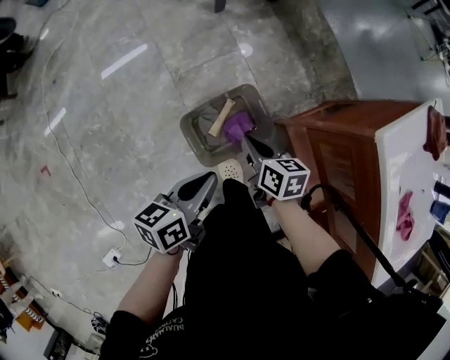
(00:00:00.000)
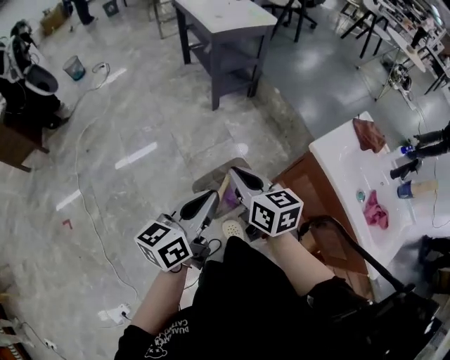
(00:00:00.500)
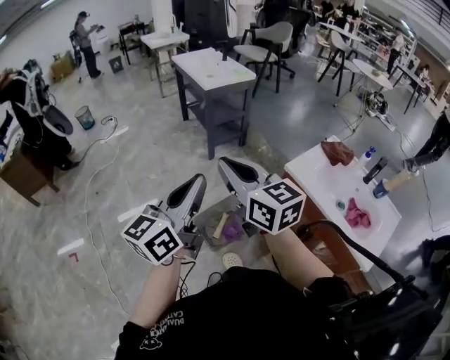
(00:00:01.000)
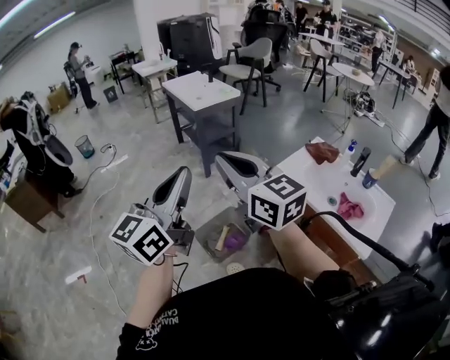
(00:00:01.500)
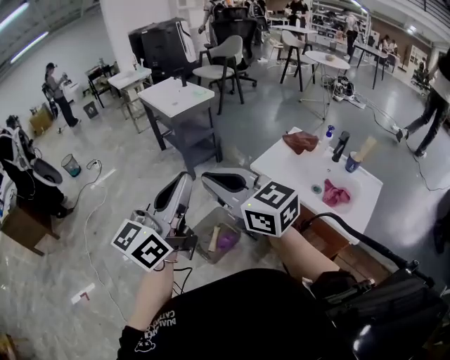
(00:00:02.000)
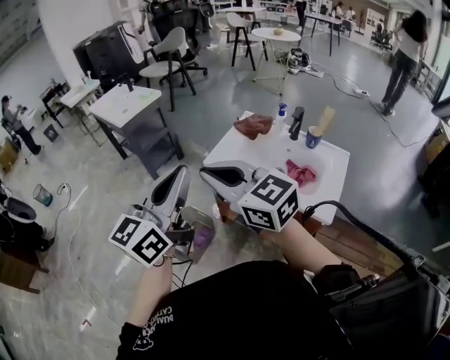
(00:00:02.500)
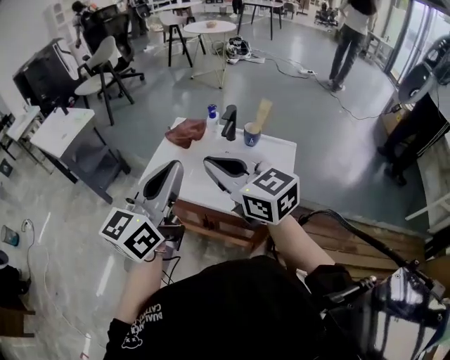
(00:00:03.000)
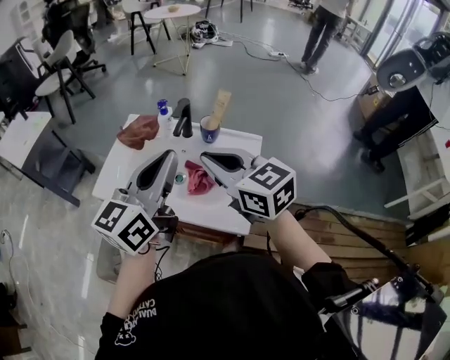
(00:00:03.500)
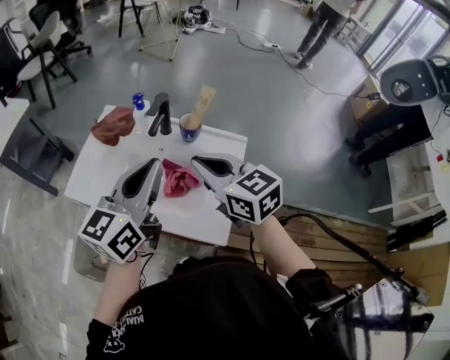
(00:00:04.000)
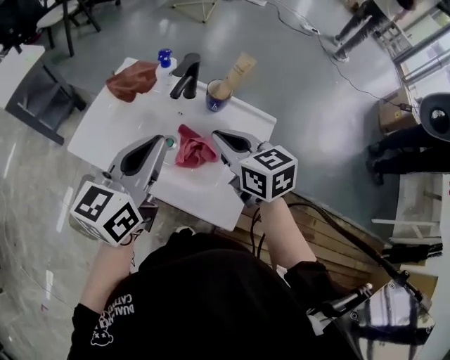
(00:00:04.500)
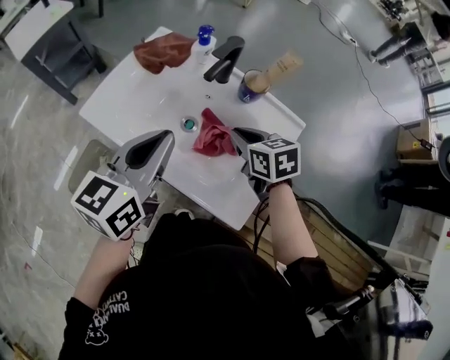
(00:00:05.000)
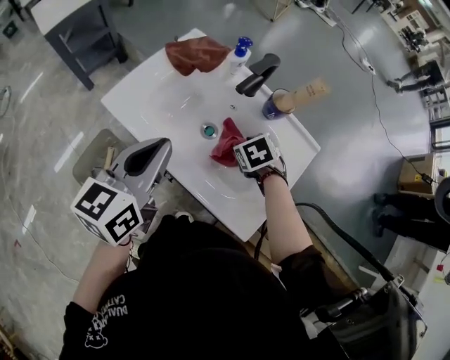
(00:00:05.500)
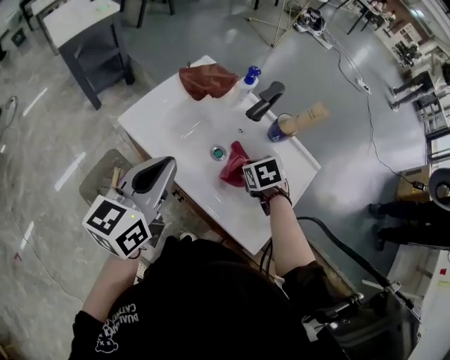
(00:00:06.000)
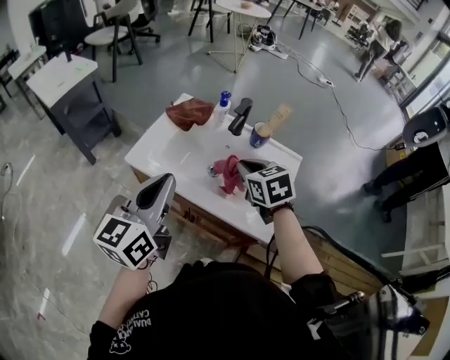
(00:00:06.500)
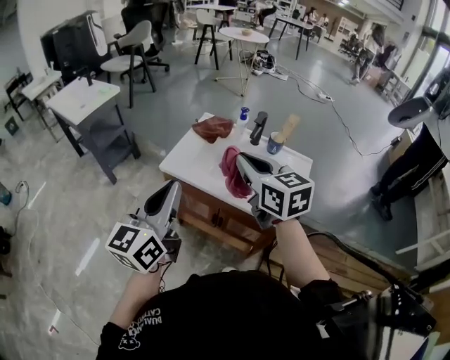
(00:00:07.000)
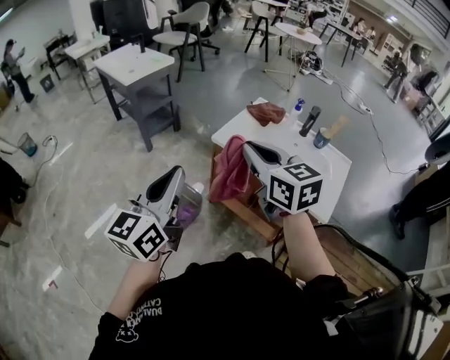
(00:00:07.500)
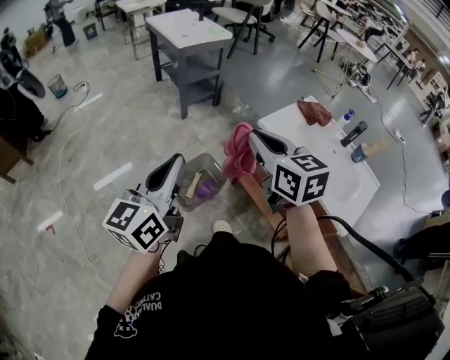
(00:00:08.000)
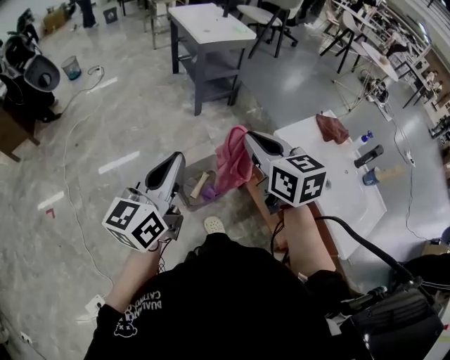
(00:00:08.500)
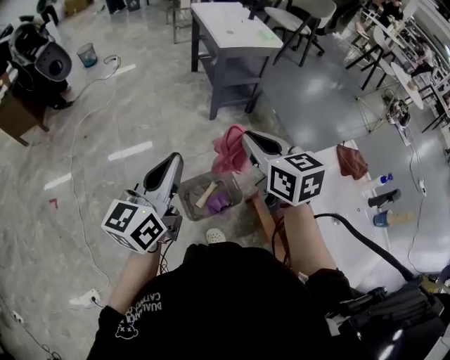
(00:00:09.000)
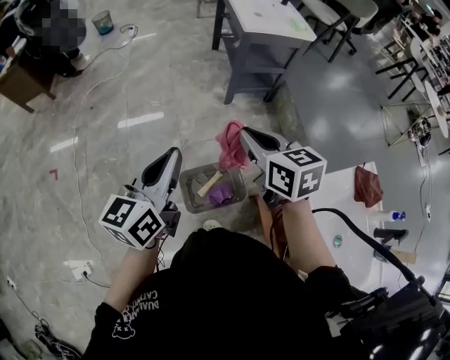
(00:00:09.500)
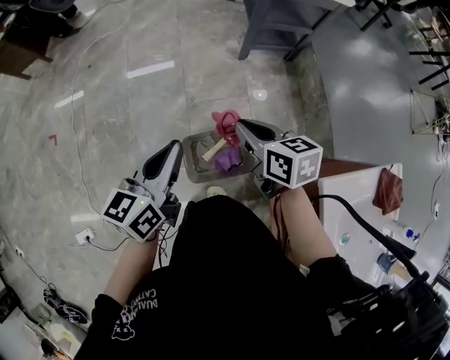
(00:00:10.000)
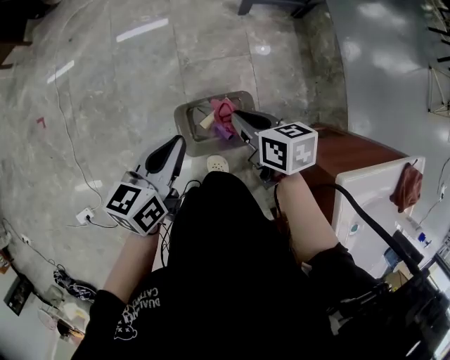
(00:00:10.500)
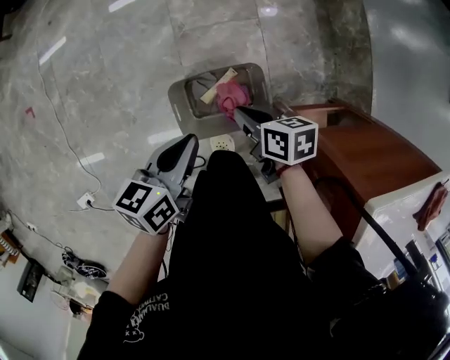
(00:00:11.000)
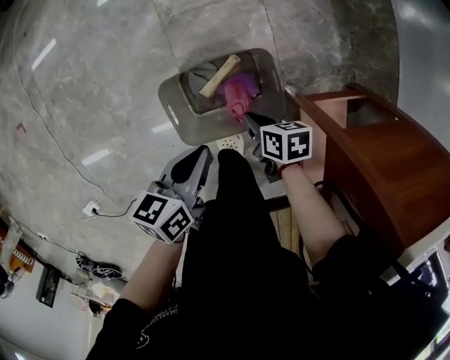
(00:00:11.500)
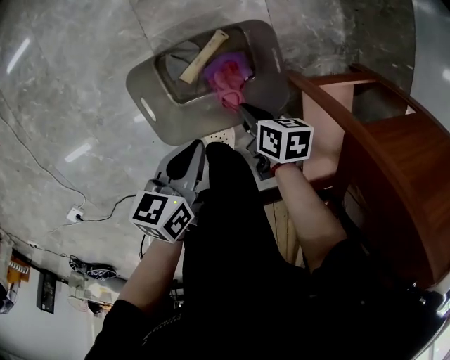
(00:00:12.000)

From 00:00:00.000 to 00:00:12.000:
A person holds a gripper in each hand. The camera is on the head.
From 00:00:00.000 to 00:00:02.000: The left gripper travels upward by some 60 cm, and angles its fingers upward, by about 40 degrees. Meanwhile the right gripper goes roughly 70 cm upward and backward, and tips its fingers upward by about 40 degrees.
From 00:00:02.000 to 00:00:04.000: Both grippers are carried approximately 60 cm. The left gripper swivels approximately 30 degrees. Meanwhile the right gripper swivels about 40 degrees.
From 00:00:04.000 to 00:00:06.000: The right gripper heads downward, covering approximately 25 cm, tilts its fingers about 50 degrees downward, and opens, then closes again. The left gripper moves to the left and downward, approximately 20 cm, and turns by some 20 degrees.
From 00:00:06.000 to 00:00:08.000: Both grippers are carried approximately 50 cm. The left gripper turns by about 20 degrees. The right gripper tilts its fingers about 50 degrees upward.
From 00:00:08.000 to 00:00:10.000: The right gripper moves some 40 cm, and turns by about 40 degrees. Meanwhile the left gripper moves roughly 35 cm, and changes its angle by approximately 30 degrees.
From 00:00:10.000 to 00:00:12.000: The two grippers go some 60 cm downward. The right gripper turns by roughly 40 degrees. The left gripper changes its angle by some 40 degrees.

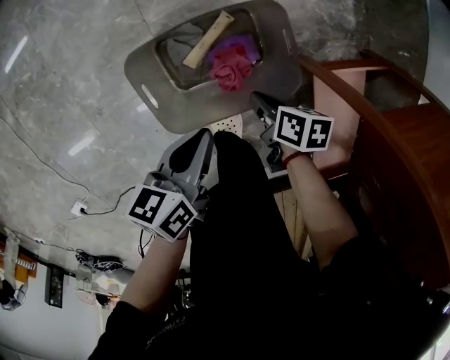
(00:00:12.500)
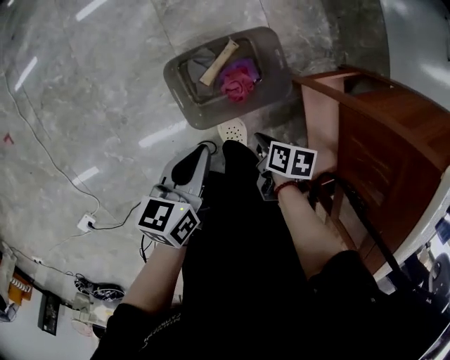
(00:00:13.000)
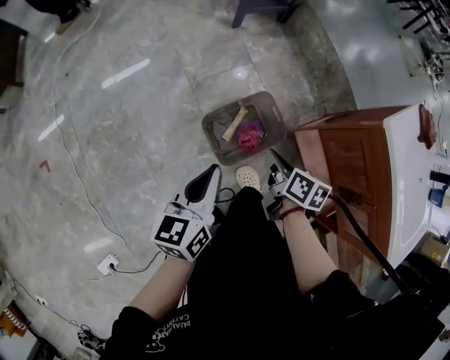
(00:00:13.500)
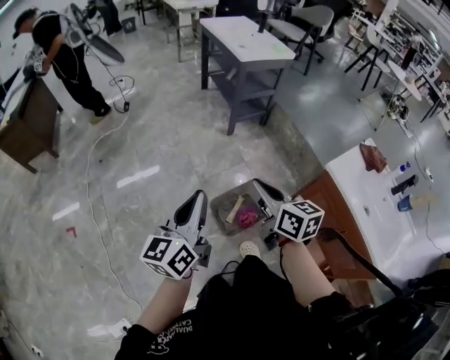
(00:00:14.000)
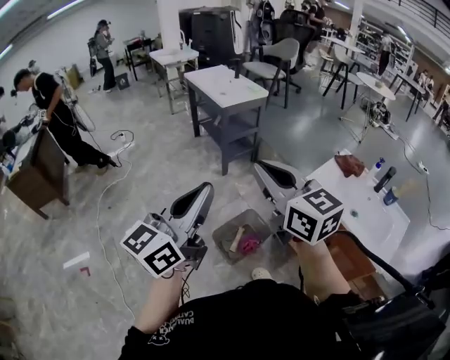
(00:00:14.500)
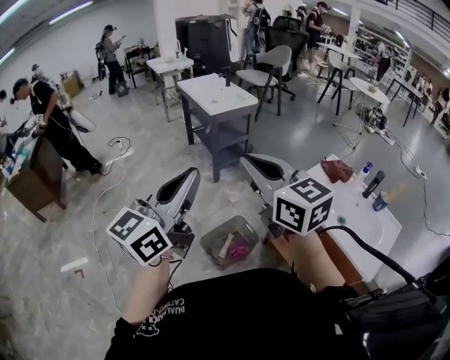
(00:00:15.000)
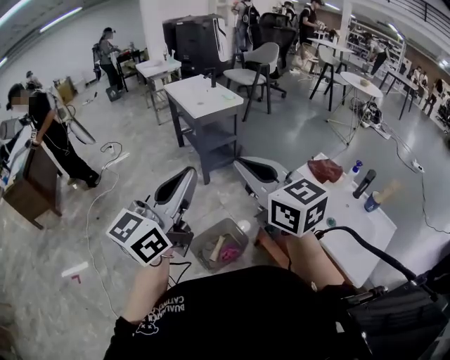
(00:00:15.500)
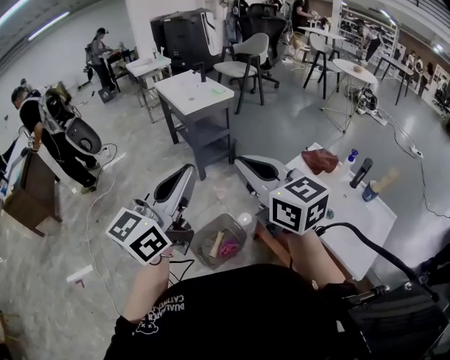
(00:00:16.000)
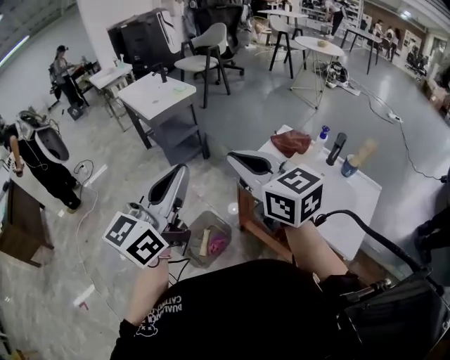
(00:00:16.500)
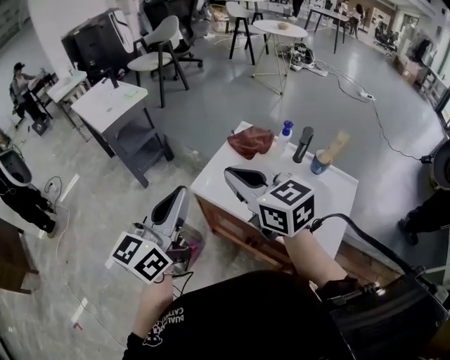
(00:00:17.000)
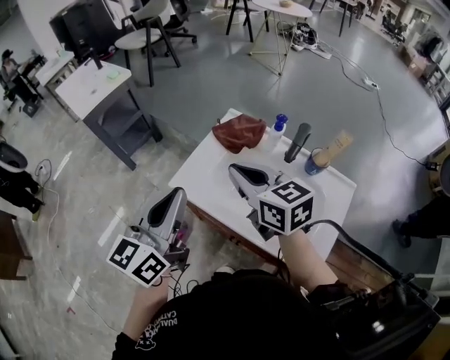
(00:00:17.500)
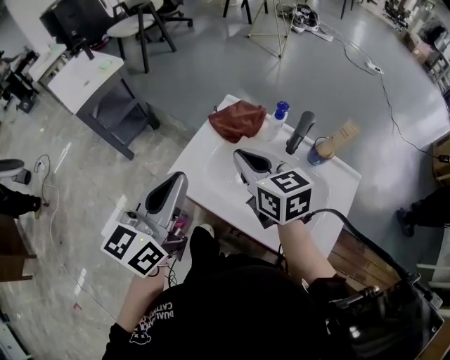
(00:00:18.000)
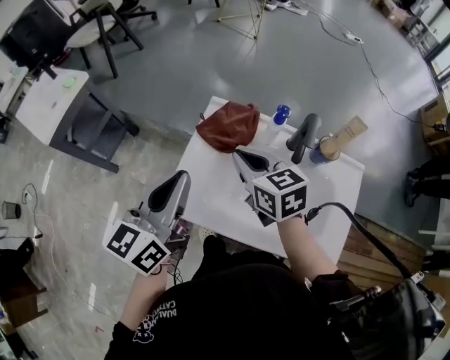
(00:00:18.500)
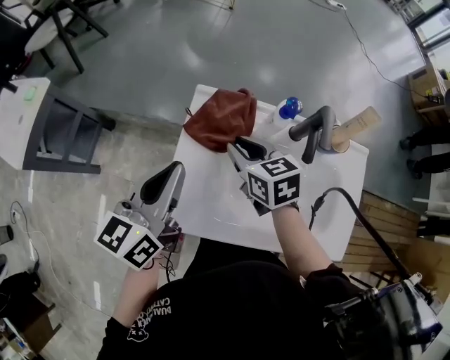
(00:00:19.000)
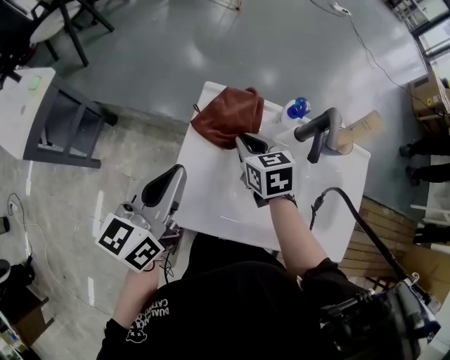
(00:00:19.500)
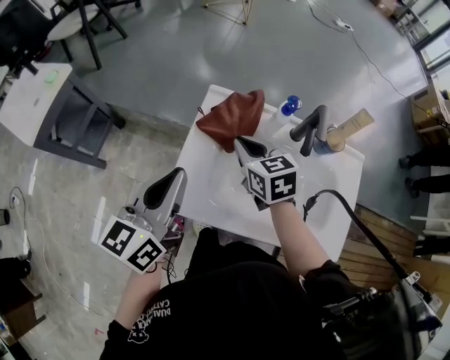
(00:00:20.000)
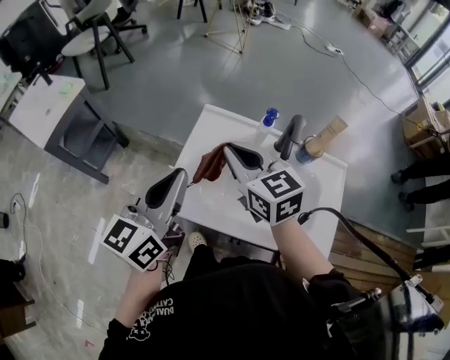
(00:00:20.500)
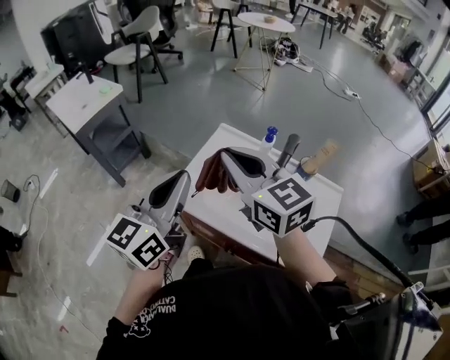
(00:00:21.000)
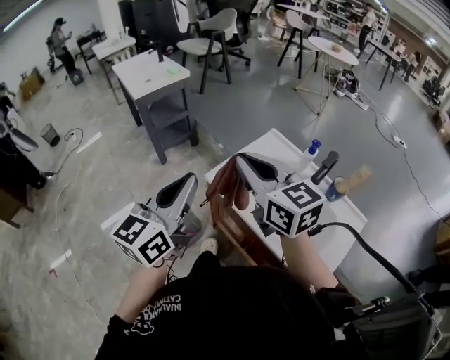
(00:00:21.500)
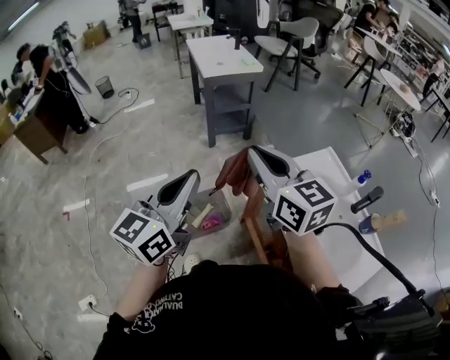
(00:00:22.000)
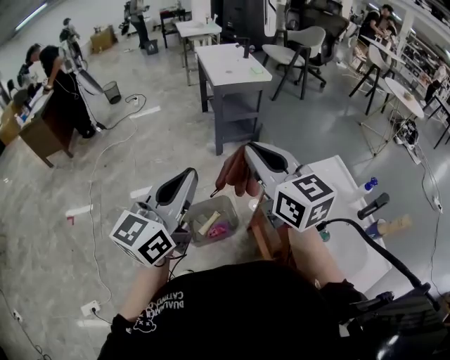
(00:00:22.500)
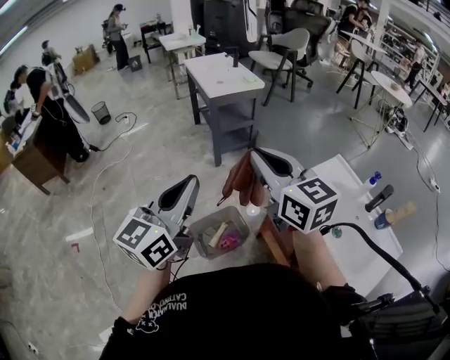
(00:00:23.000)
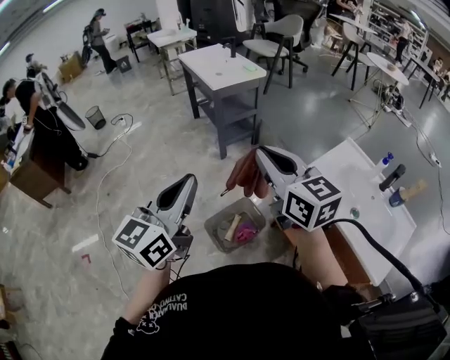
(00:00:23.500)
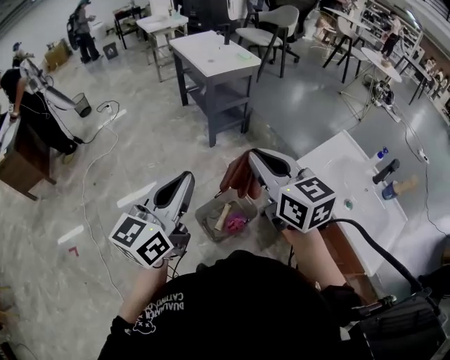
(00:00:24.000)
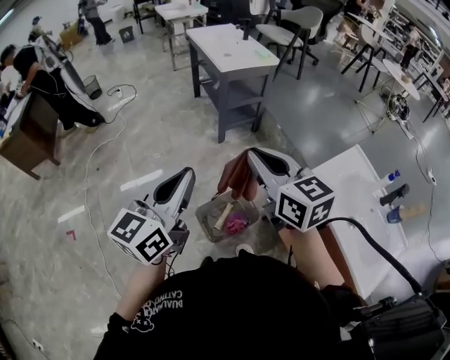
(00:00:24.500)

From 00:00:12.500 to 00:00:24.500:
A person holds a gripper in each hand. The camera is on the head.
From 00:00:12.500 to 00:00:14.500: The grippers both shift upward by roughly 90 cm. The right gripper angles its fingers upward, by about 60 degrees. The left gripper tilts its fingers approximately 50 degrees upward.
From 00:00:14.500 to 00:00:16.500: Both grippers move to the right, approximately 25 cm.
From 00:00:16.500 to 00:00:18.500: The grippers both shift forward, to the right and downward by about 50 cm. The left gripper rotates about 30 degrees. Meanwhile the right gripper turns by some 40 degrees.
From 00:00:18.500 to 00:00:20.500: The right gripper is displaced upward by approximately 10 cm, while the left gripper reaches approximately 10 cm forward, then returns.
From 00:00:20.500 to 00:00:22.500: The right gripper moves about 40 cm, and changes its angle by about 50 degrees. Meanwhile the left gripper ends up approximately 40 cm from where it was, and swivels about 50 degrees.
From 00:00:22.500 to 00:00:24.500: Both grippers move to the left and forward, about 20 cm.

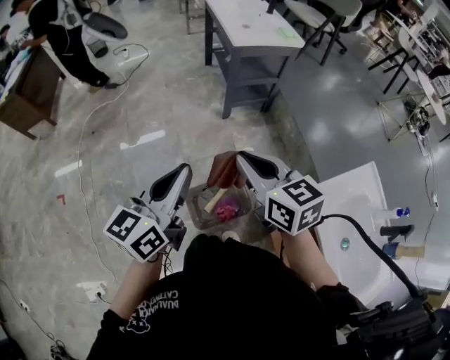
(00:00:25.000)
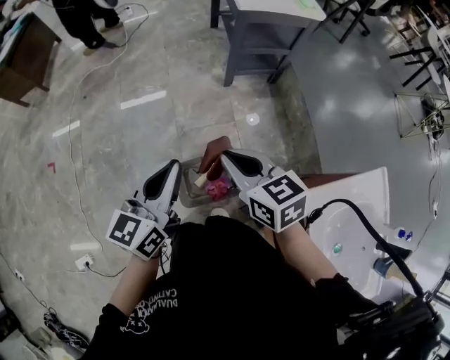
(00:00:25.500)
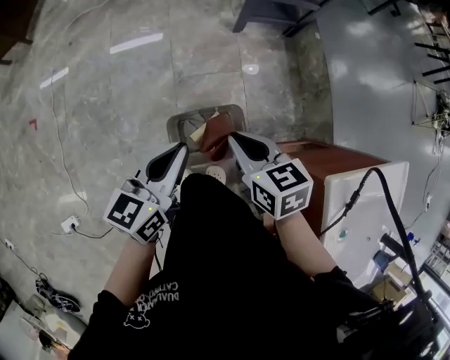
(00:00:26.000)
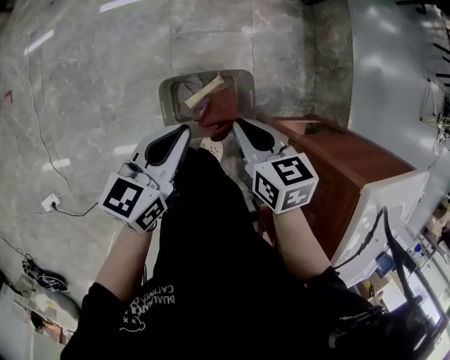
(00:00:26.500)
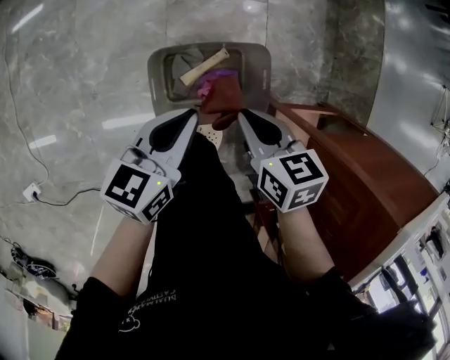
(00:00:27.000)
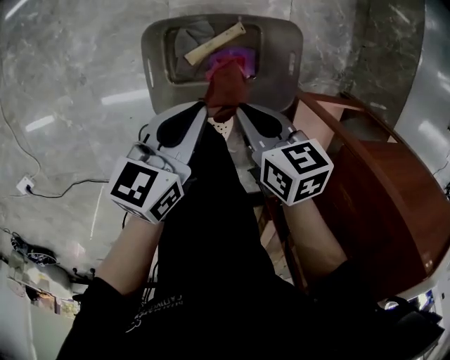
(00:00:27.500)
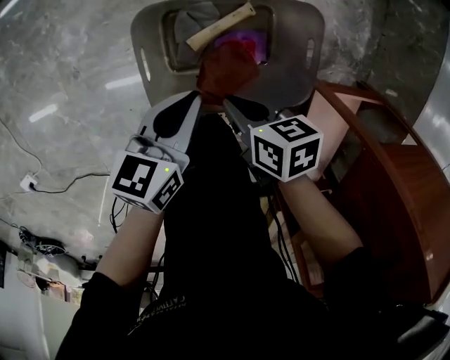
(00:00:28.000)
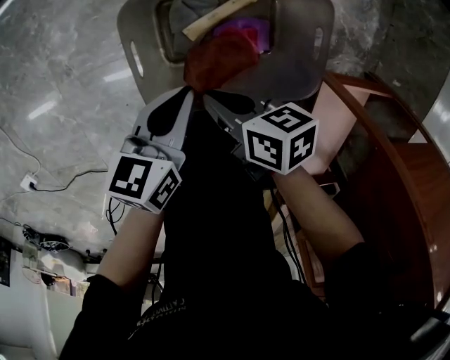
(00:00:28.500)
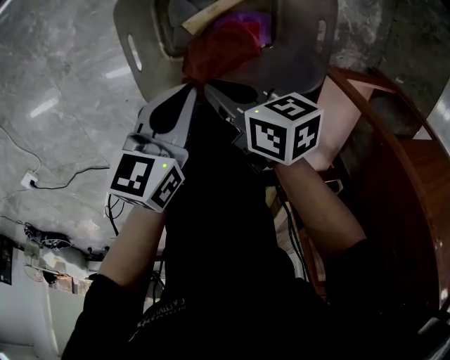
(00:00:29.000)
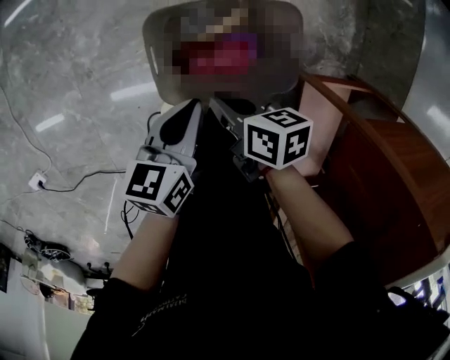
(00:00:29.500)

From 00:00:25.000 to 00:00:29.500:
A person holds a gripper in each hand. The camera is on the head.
From 00:00:25.000 to 00:00:27.000: Both grippers move downward, about 50 cm. The right gripper angles its fingers downward, by about 30 degrees; the left gripper rotates approximately 30 degrees.
From 00:00:27.000 to 00:00:29.500: The right gripper is displaced downward and to the left by roughly 15 cm, and swivels approximately 30 degrees. The left gripper shifts approximately 15 cm downward and backward.
